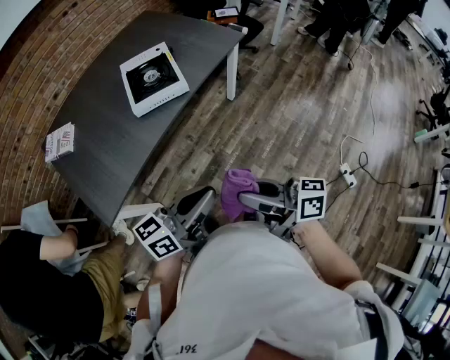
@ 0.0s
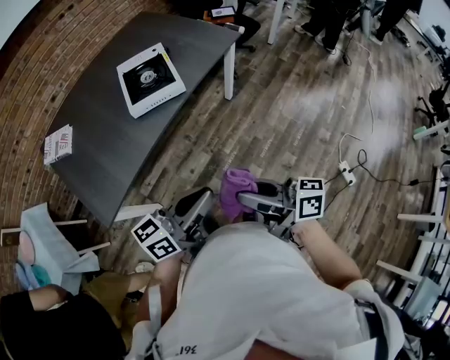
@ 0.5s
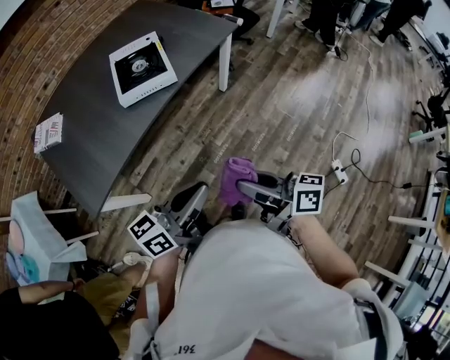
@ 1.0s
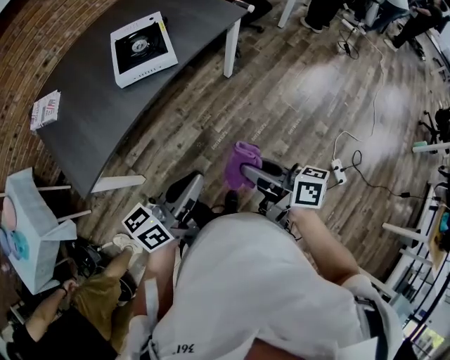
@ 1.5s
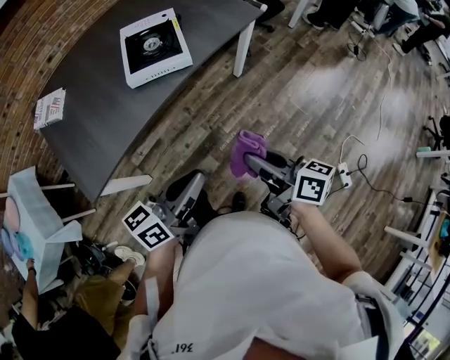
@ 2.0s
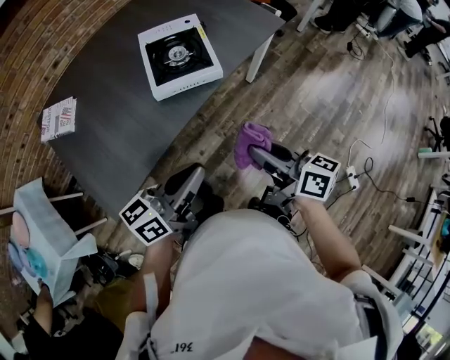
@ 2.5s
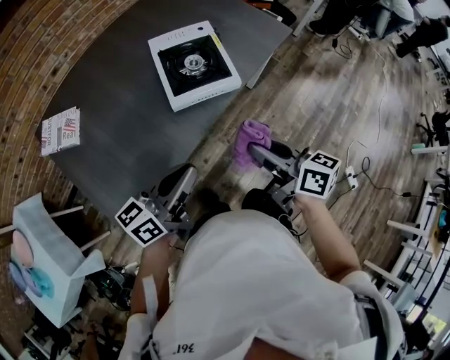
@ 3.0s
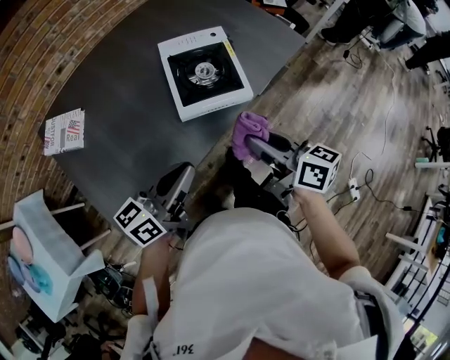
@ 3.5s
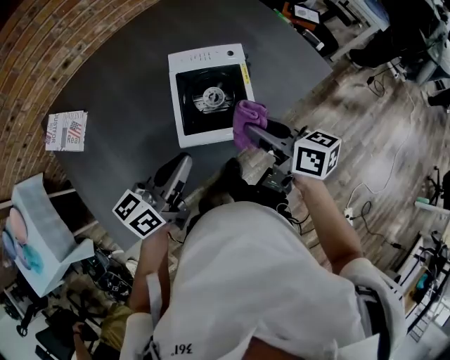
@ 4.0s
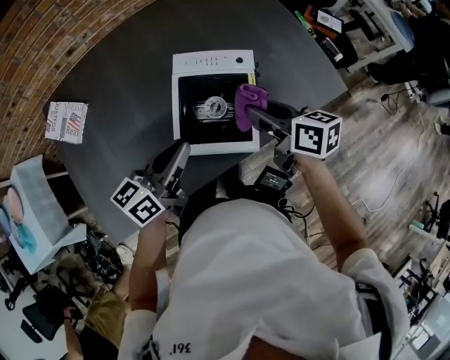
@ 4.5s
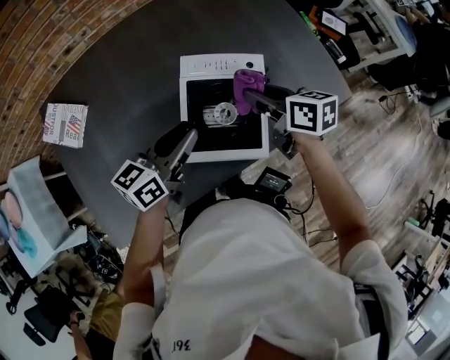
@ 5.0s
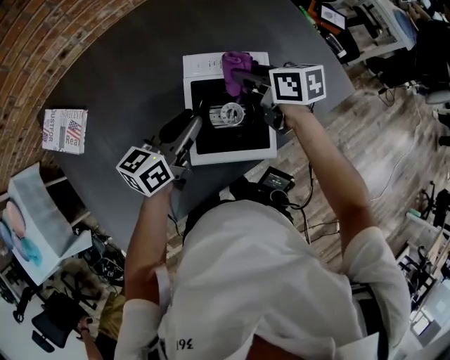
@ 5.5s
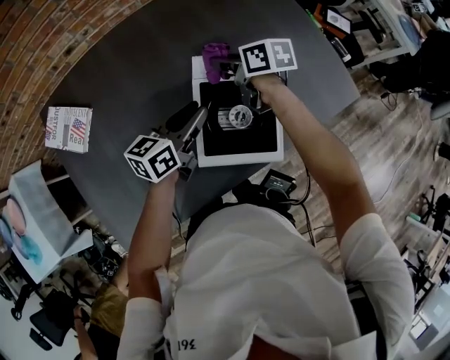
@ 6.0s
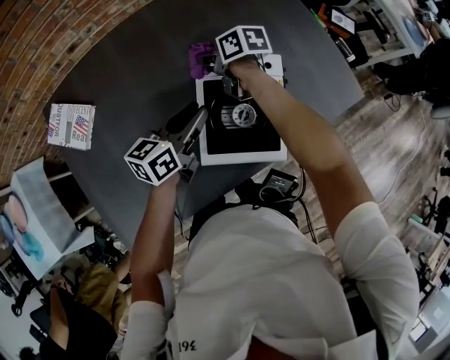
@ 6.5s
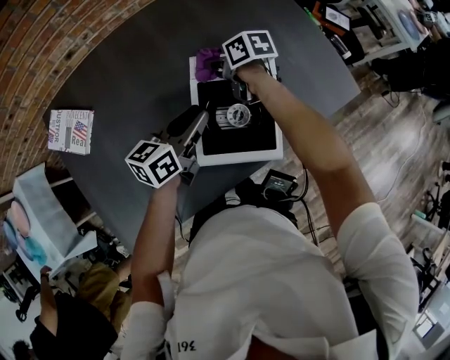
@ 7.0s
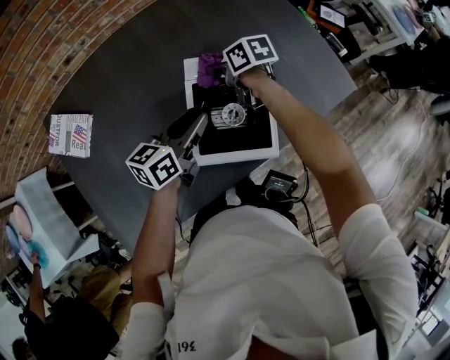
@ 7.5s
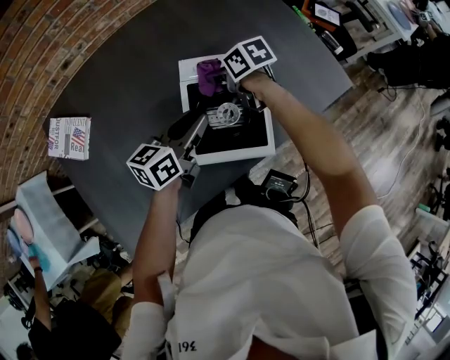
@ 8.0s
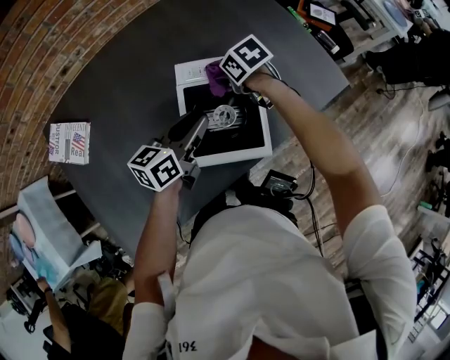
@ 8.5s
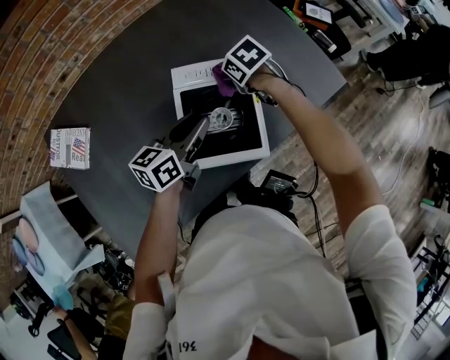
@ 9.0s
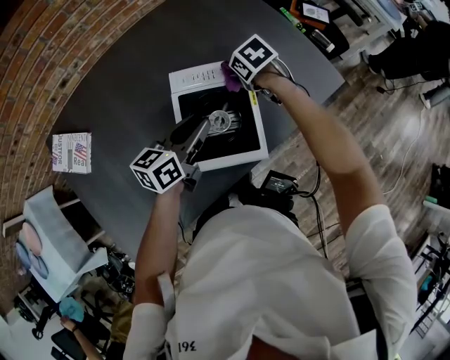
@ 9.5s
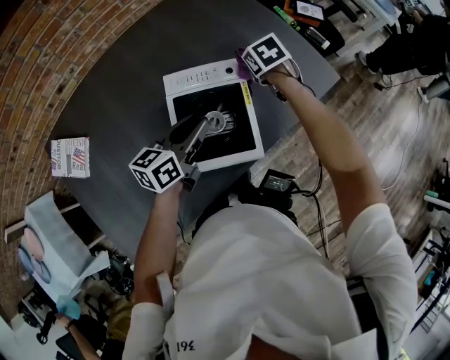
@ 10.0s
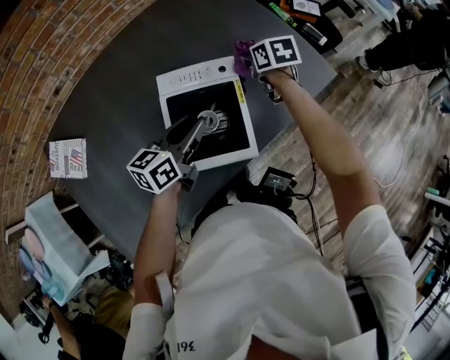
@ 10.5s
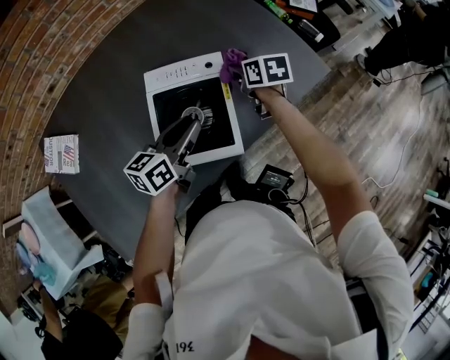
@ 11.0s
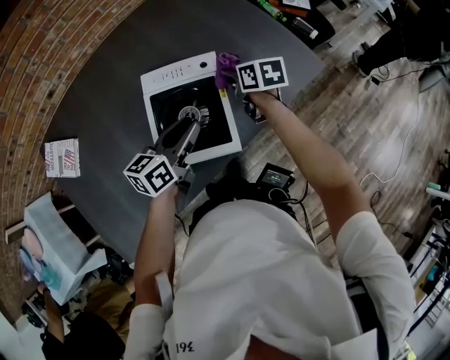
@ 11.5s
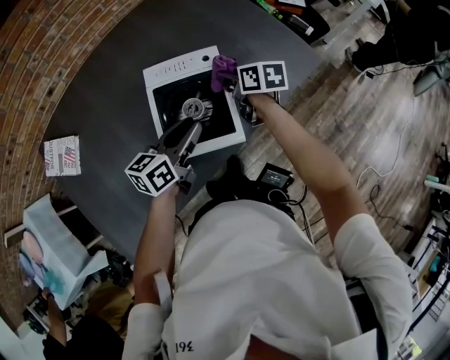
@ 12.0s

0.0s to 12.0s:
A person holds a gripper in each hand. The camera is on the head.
0.0s to 2.0s: The left gripper shifts by approximately 5 cm. The right gripper heads forward, downward and to the right, covering about 10 cm.
2.0s to 4.0s: Both grippers travel together forward and to the left, about 40 cm.
4.0s to 6.0s: The left gripper is displaced forward and downward by roughly 20 cm, and opens its fingers; the right gripper shifts approximately 30 cm forward, and changes its angle by some 20 degrees.
6.0s to 8.0s: The right gripper ends up about 5 cm from where it was.
8.0s to 10.0s: The right gripper moves approximately 20 cm, and turns by some 30 degrees.
10.0s to 12.0s: The left gripper is displaced backward by roughly 5 cm, while the right gripper is displaced backward by about 10 cm, and turns by roughly 40 degrees.

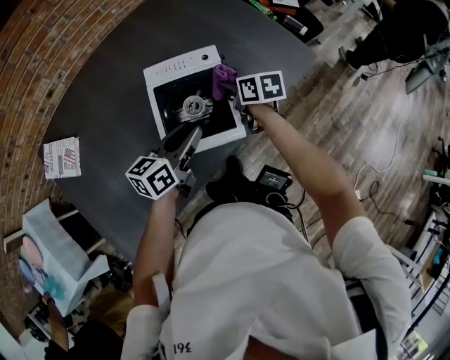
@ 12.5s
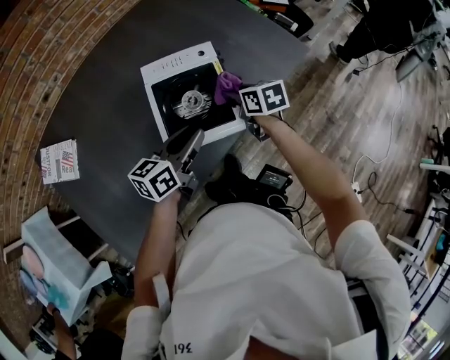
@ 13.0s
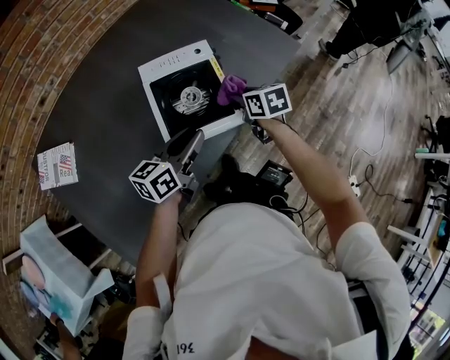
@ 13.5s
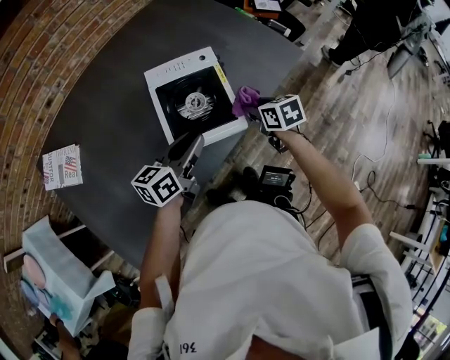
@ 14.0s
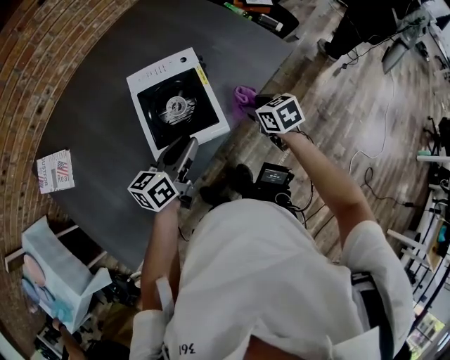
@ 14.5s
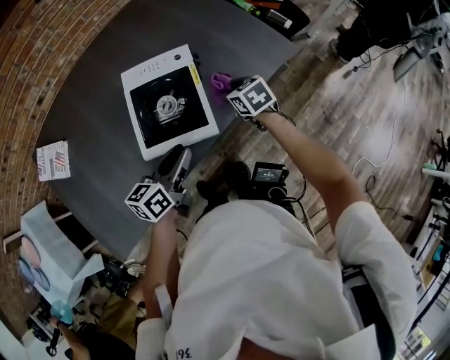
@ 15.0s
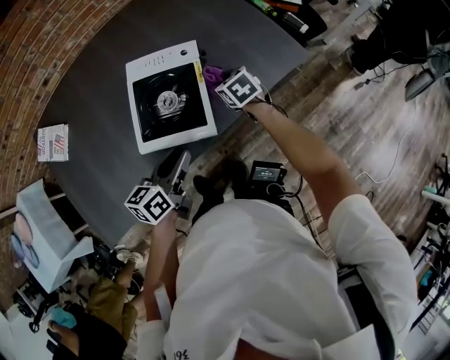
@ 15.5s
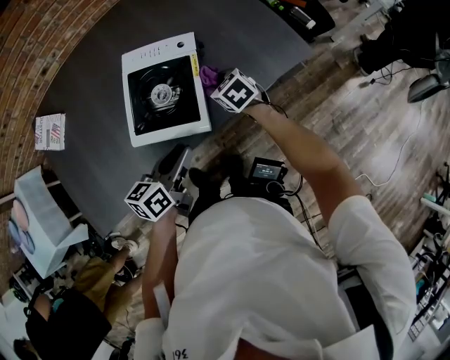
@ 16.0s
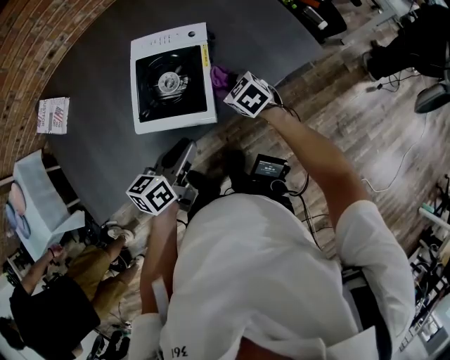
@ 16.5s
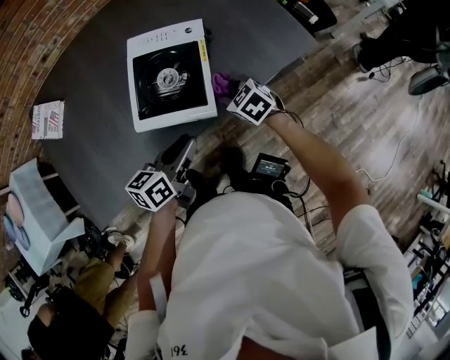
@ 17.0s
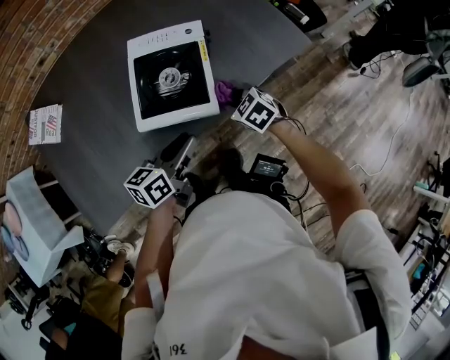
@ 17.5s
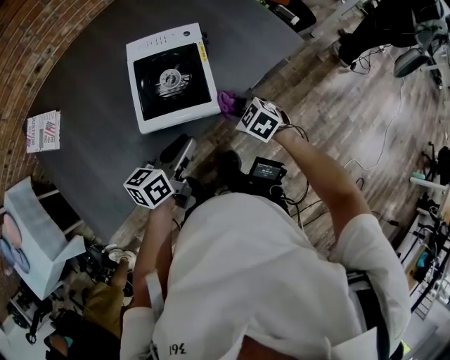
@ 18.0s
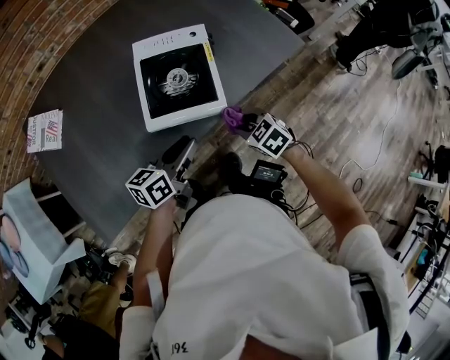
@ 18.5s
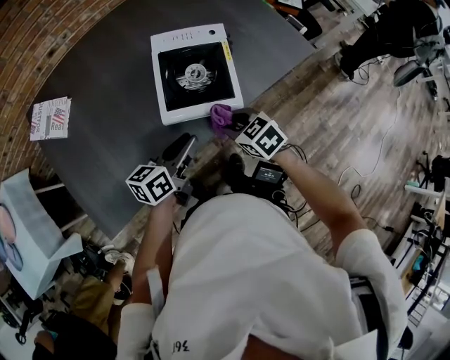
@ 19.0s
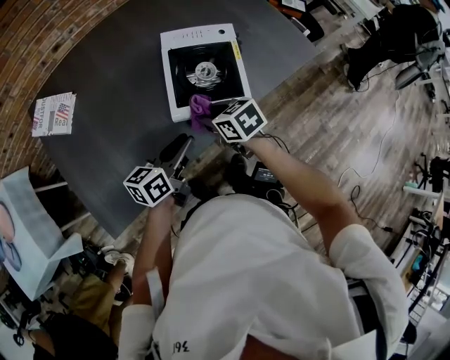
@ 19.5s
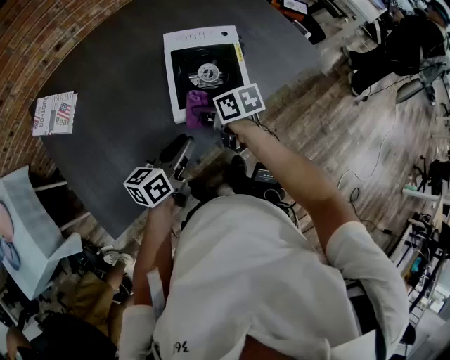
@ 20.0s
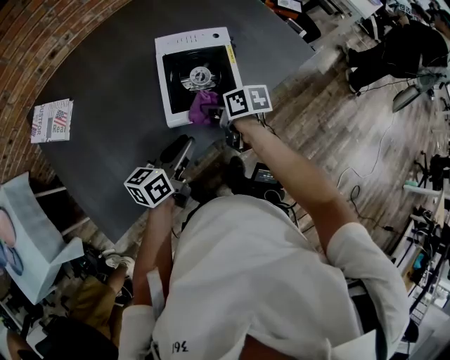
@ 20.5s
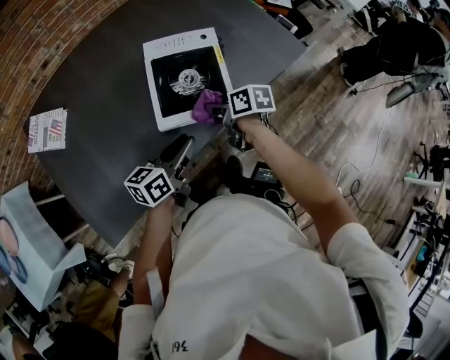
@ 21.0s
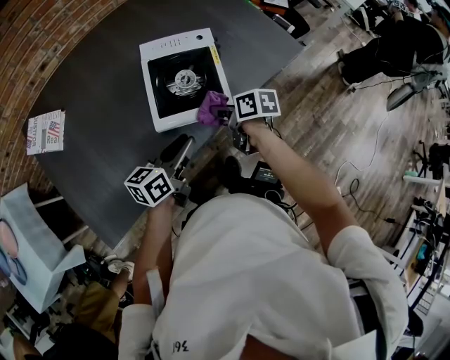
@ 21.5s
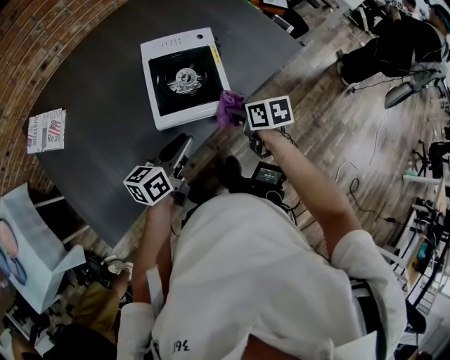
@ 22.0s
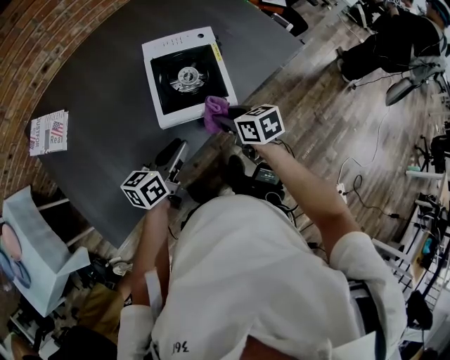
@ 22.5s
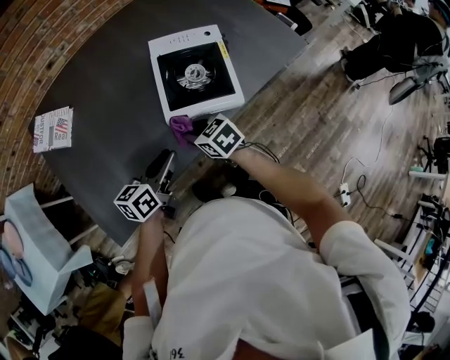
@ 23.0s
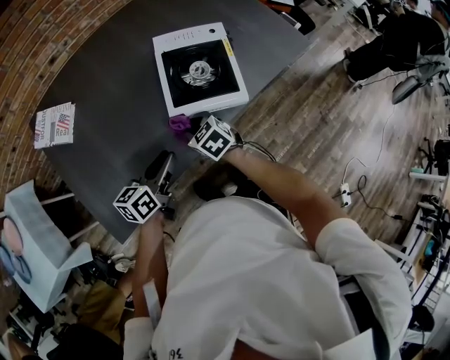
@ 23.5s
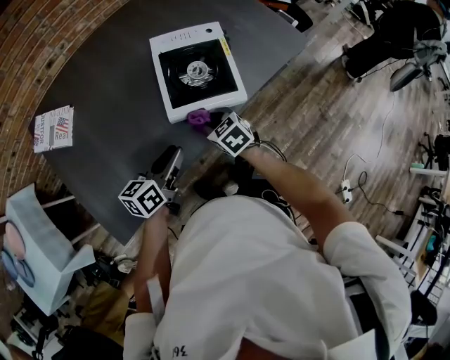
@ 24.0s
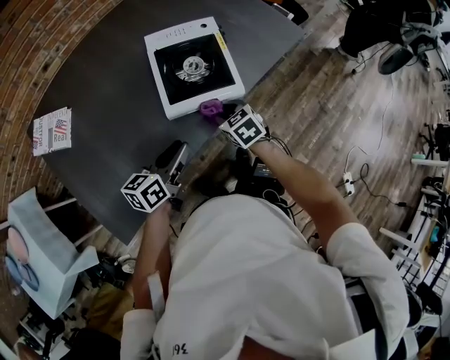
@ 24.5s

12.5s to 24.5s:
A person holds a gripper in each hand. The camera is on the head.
12.5s to 14.5s: The right gripper shifts approximately 15 cm to the right and backward, and changes its angle by about 20 degrees, while the left gripper moves about 5 cm.
14.5s to 16.5s: The left gripper shifts by some 5 cm, and changes its angle by approximately 20 degrees; the right gripper is displaced to the left, forward and downward by roughly 10 cm, and swivels some 40 degrees.
16.5s to 18.5s: The right gripper heads backward, covering approximately 15 cm; the left gripper heads to the left, covering about 5 cm.
18.5s to 20.5s: The right gripper shifts roughly 15 cm to the left and forward, and twists some 50 degrees clockwise, seen from behind. The left gripper shifts roughly 5 cm to the left.
20.5s to 22.5s: The right gripper moves to the right, some 5 cm, and swivels approximately 20 degrees.
22.5s to 24.5s: The right gripper shifts about 5 cm downward, goes to the left and returns, about 15 cm each way, and rotates some 30 degrees.

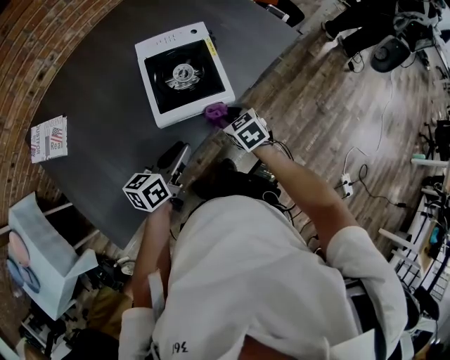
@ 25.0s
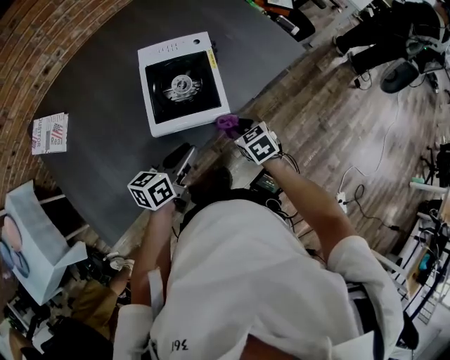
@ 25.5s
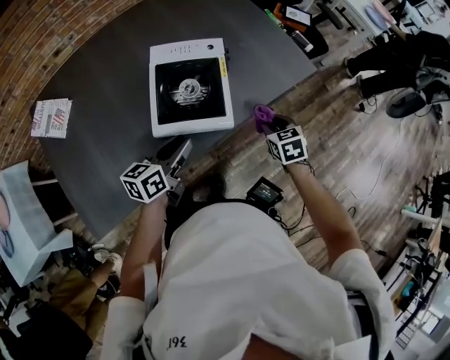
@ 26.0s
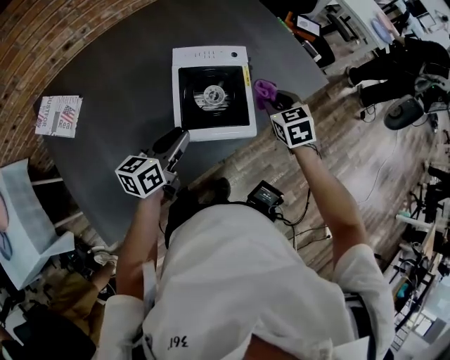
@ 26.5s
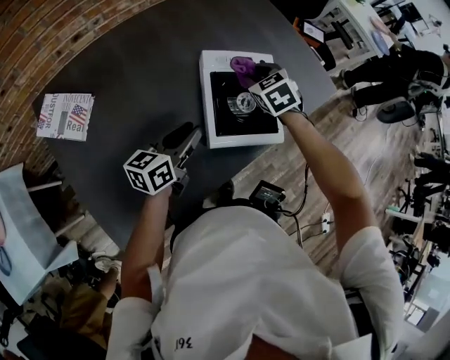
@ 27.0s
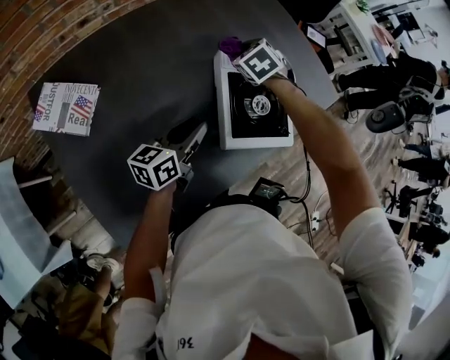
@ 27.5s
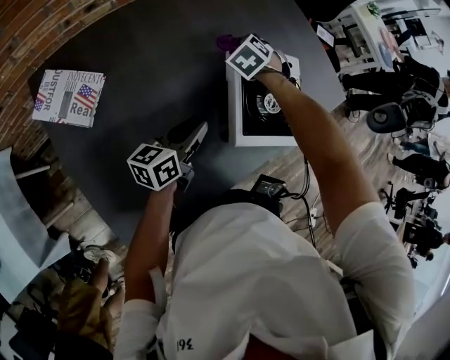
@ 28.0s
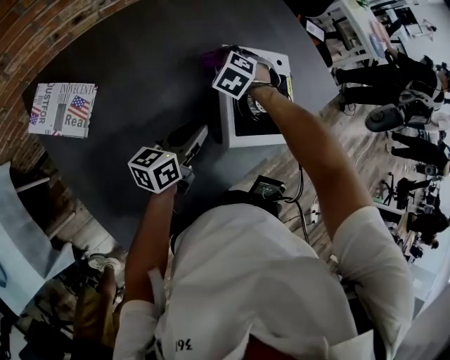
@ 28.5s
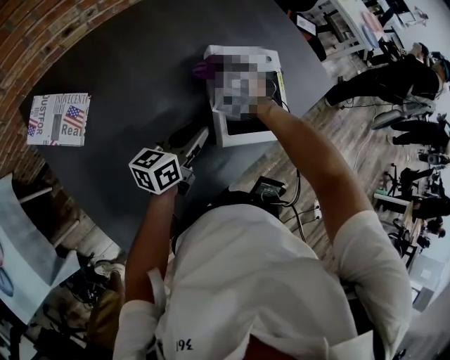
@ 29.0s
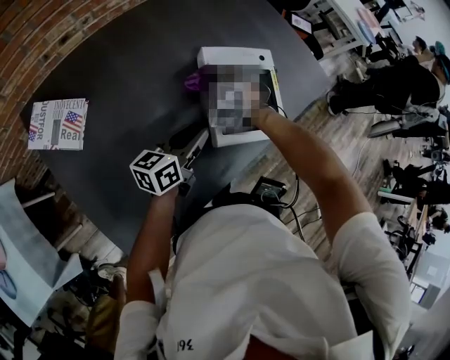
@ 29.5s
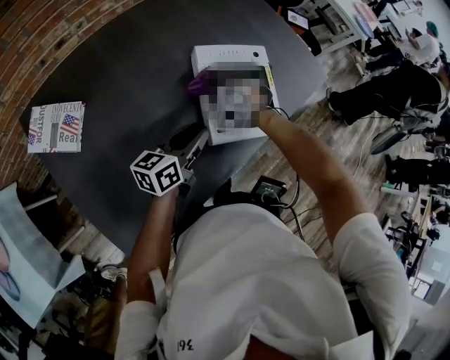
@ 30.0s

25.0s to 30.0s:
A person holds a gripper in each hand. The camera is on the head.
25.0s to 27.5s: The left gripper is displaced to the left and forward by some 20 cm. The right gripper goes about 35 cm forward and to the left, and swivels some 30 degrees.
27.5s to 30.0s: The left gripper heads to the right, covering roughly 5 cm. Meanwhile the right gripper travels backward and downward by some 15 cm, and changes its angle by approximately 30 degrees.
